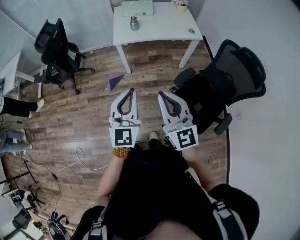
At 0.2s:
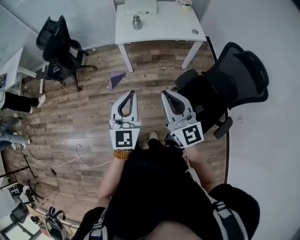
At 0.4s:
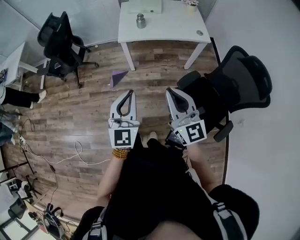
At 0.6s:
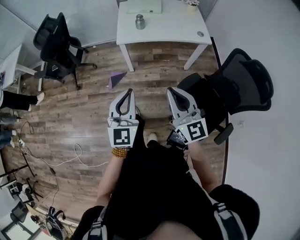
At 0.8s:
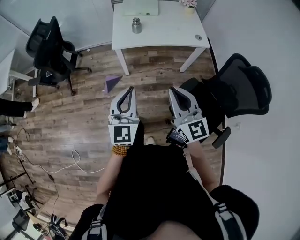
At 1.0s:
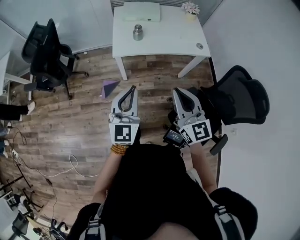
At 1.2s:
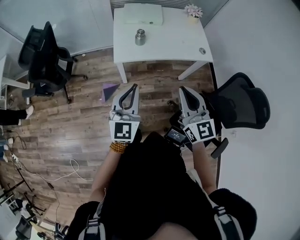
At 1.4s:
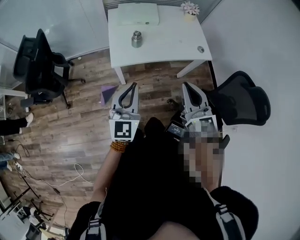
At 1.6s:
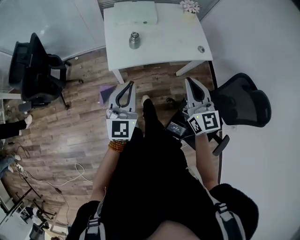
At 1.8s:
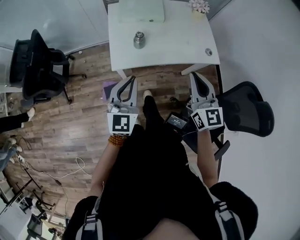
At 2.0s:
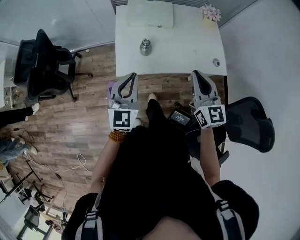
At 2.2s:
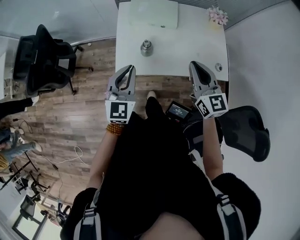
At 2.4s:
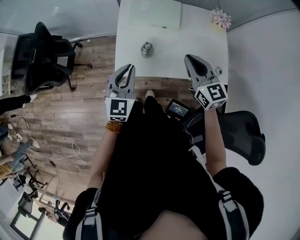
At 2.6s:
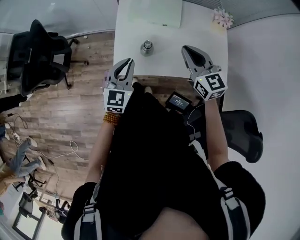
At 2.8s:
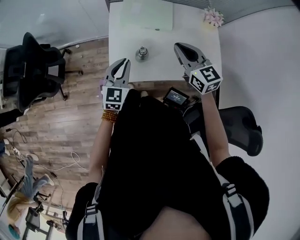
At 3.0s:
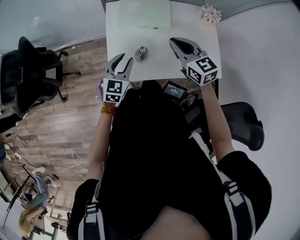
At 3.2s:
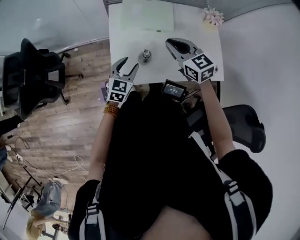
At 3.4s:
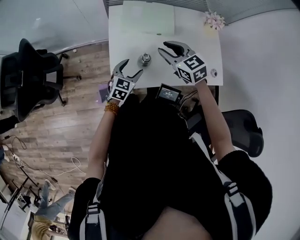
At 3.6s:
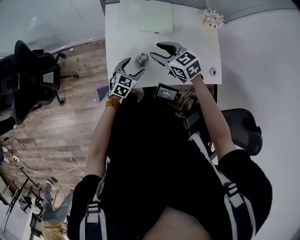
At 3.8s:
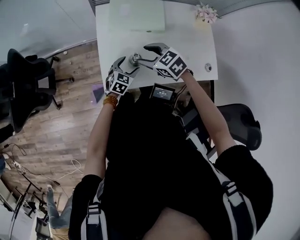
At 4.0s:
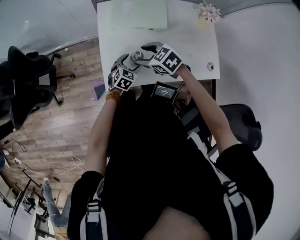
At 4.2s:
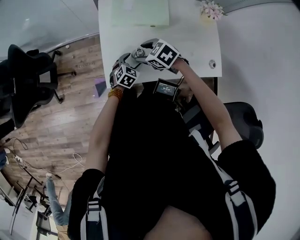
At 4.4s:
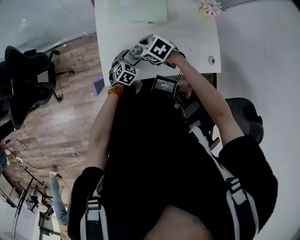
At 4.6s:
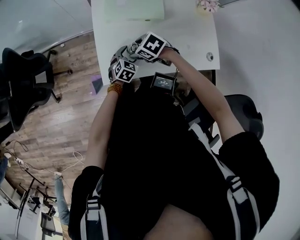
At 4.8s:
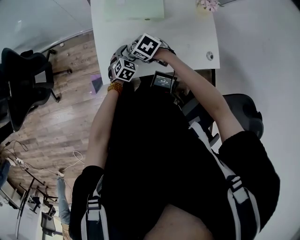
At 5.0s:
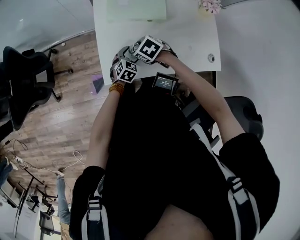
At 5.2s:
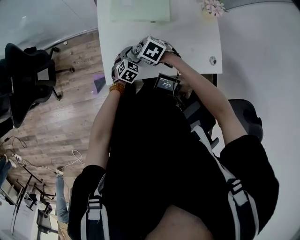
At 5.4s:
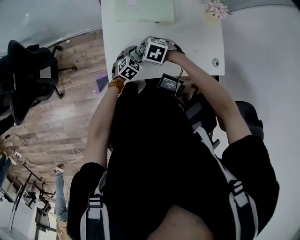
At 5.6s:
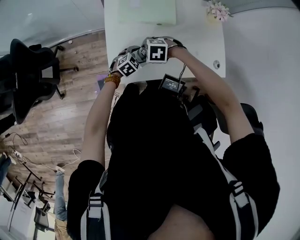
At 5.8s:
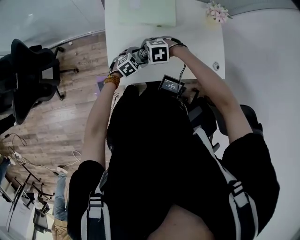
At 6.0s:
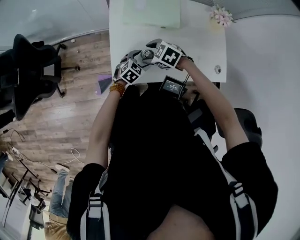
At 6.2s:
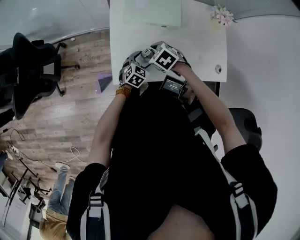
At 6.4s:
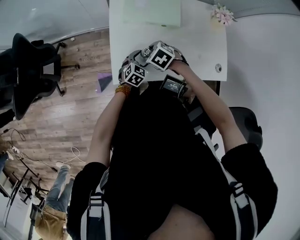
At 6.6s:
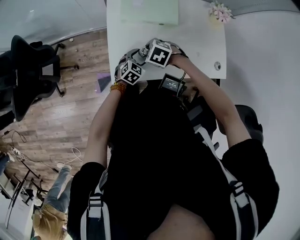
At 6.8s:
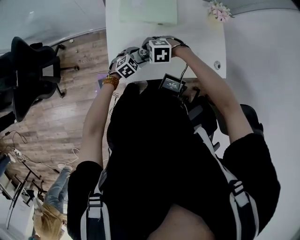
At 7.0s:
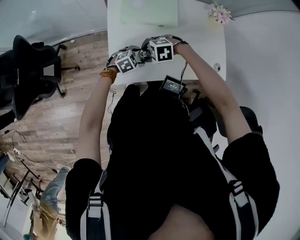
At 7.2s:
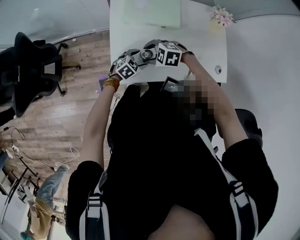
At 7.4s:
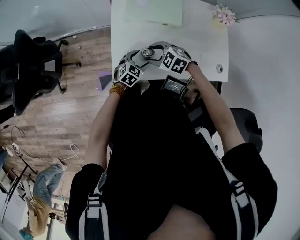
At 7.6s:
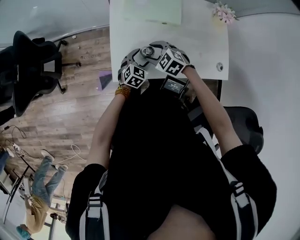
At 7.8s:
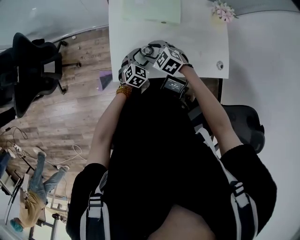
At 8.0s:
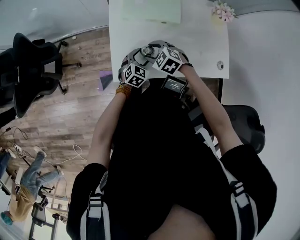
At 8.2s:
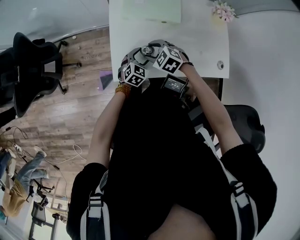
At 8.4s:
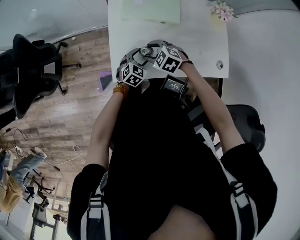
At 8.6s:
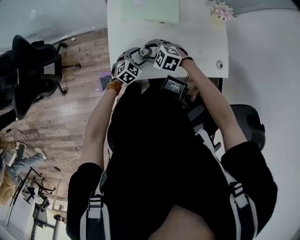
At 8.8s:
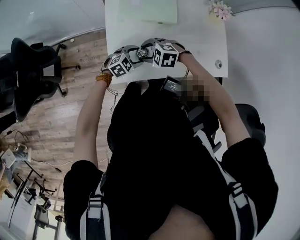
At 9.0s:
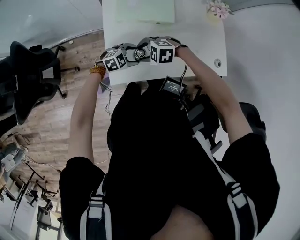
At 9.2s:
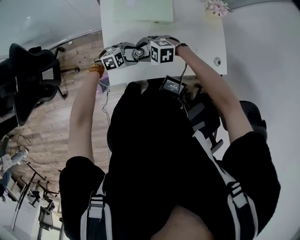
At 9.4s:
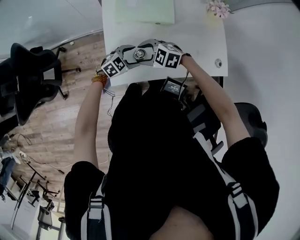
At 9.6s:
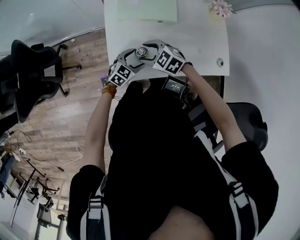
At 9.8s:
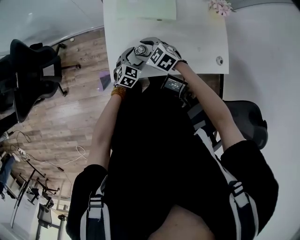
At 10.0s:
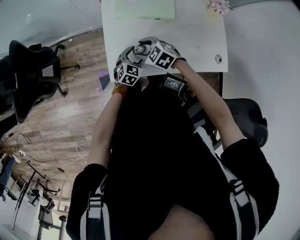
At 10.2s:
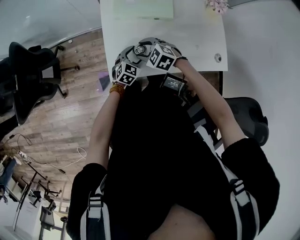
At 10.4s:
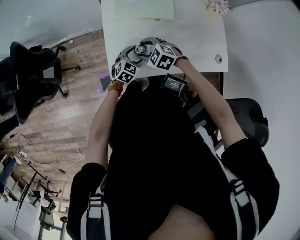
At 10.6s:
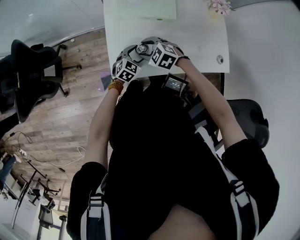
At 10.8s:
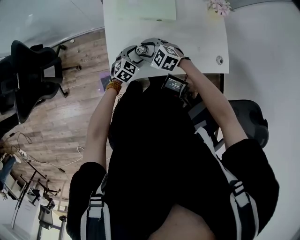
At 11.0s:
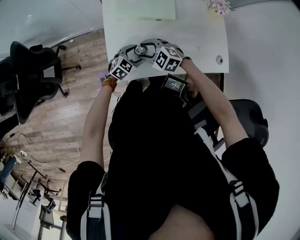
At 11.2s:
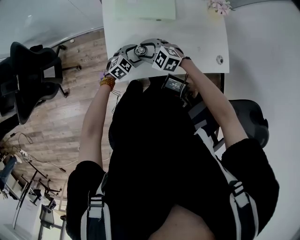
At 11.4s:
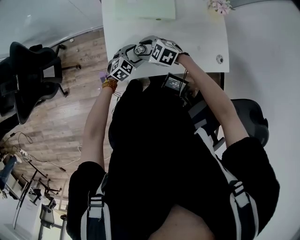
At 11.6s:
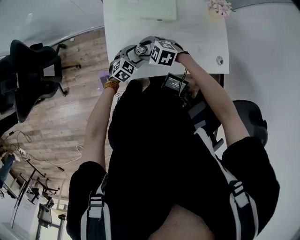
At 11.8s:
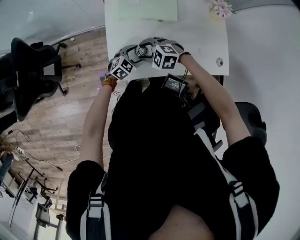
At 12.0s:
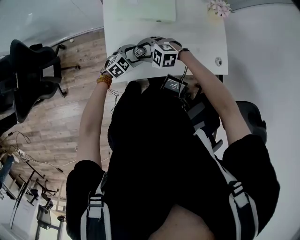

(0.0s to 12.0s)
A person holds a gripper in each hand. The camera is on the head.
0.0s - 1.6s: Both grippers move forward, roughly 40 cm.
1.6s - 3.0s: The right gripper travels forward by some 35 cm, and changes its angle by approximately 30 degrees. Meanwhile the left gripper heads forward and downward, covering roughly 35 cm.
3.0s - 4.4s: The left gripper heads downward, covering roughly 20 cm, changes its angle by about 30 degrees, and opens up, while the right gripper goes approximately 20 cm downward and to the left, tips its fingers downward by about 40 degrees, and opens up.
7.6s - 9.0s: The left gripper turns by roughly 50 degrees; the right gripper turns by about 30 degrees.
9.0s - 10.4s: The left gripper turns by roughly 40 degrees. Meanwhile the right gripper turns by about 20 degrees.
10.4s - 12.0s: The right gripper turns by some 20 degrees.

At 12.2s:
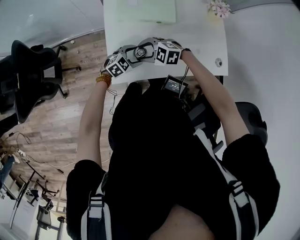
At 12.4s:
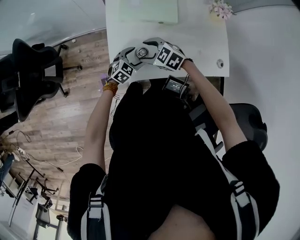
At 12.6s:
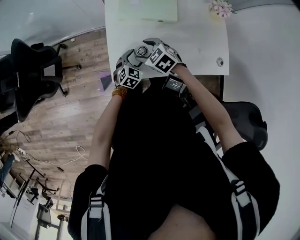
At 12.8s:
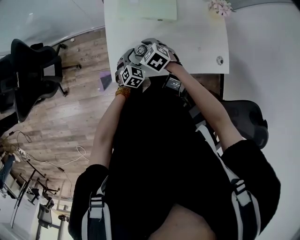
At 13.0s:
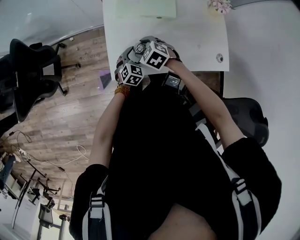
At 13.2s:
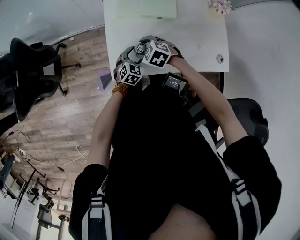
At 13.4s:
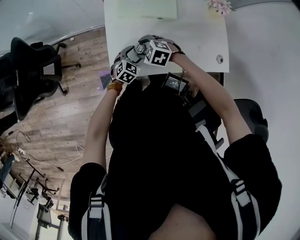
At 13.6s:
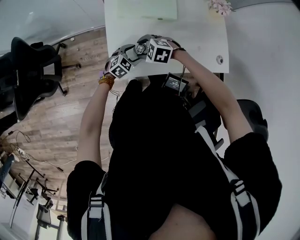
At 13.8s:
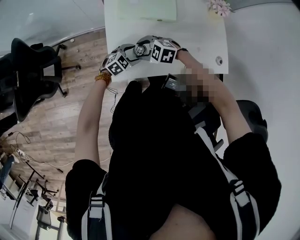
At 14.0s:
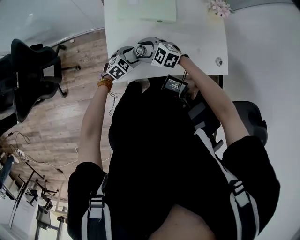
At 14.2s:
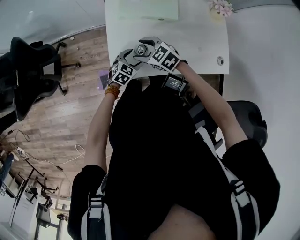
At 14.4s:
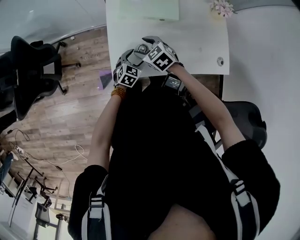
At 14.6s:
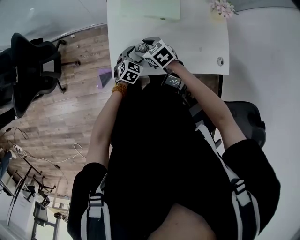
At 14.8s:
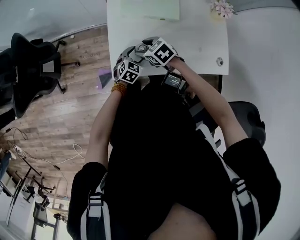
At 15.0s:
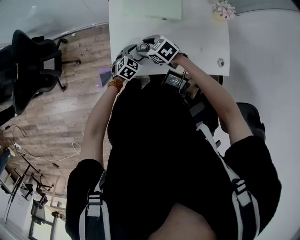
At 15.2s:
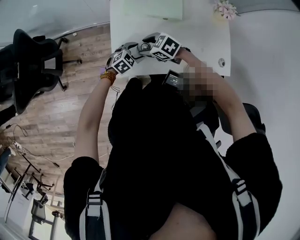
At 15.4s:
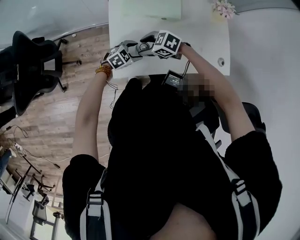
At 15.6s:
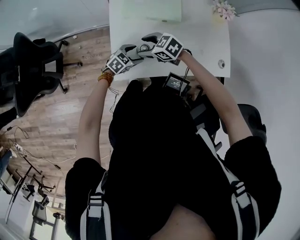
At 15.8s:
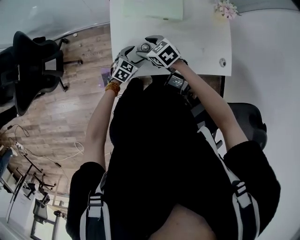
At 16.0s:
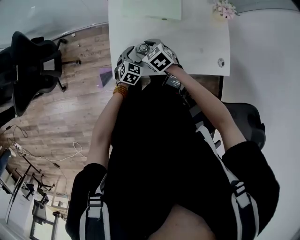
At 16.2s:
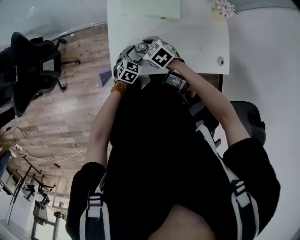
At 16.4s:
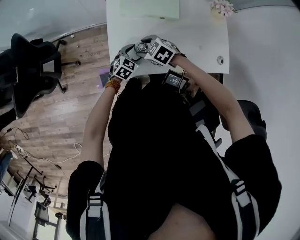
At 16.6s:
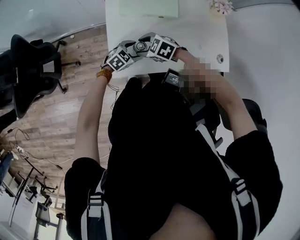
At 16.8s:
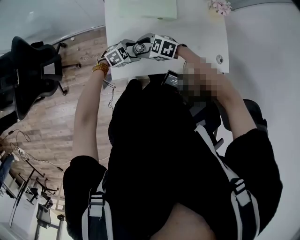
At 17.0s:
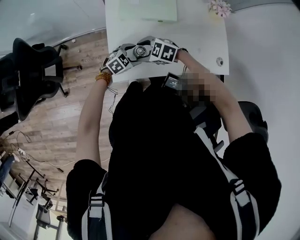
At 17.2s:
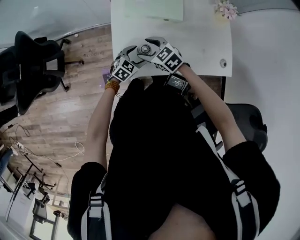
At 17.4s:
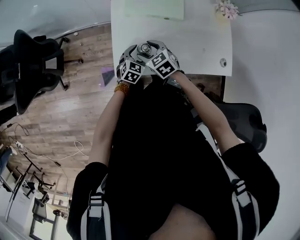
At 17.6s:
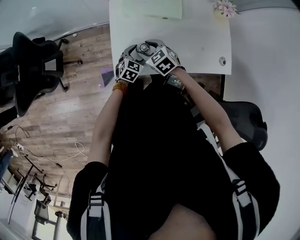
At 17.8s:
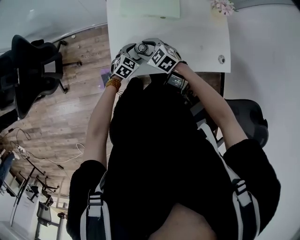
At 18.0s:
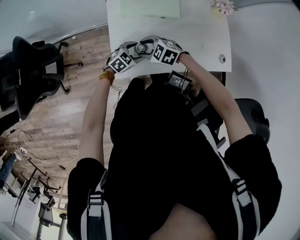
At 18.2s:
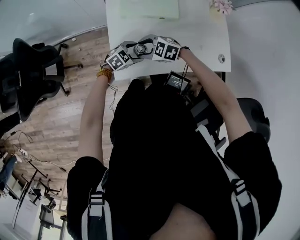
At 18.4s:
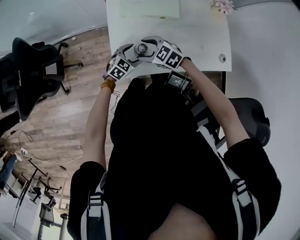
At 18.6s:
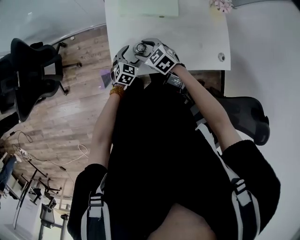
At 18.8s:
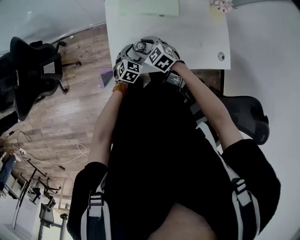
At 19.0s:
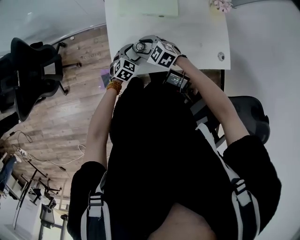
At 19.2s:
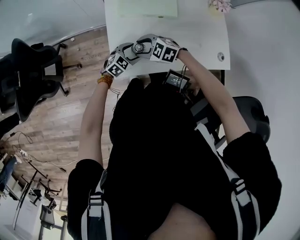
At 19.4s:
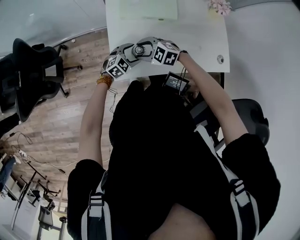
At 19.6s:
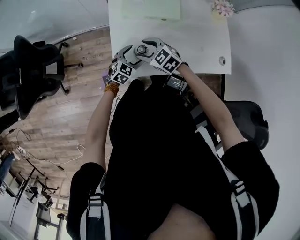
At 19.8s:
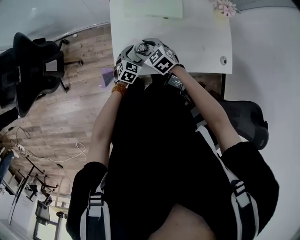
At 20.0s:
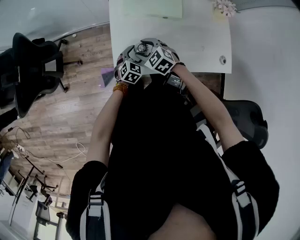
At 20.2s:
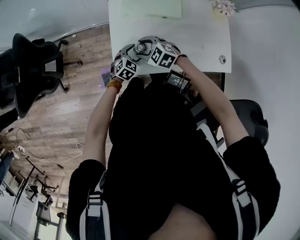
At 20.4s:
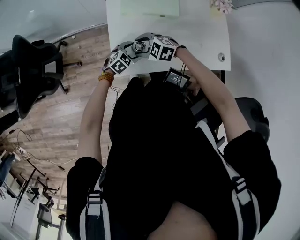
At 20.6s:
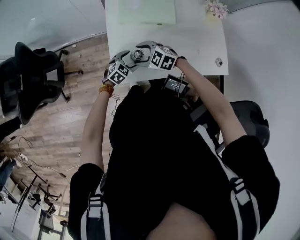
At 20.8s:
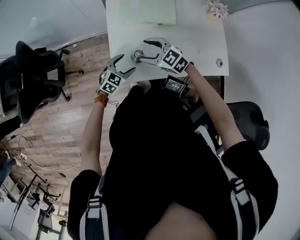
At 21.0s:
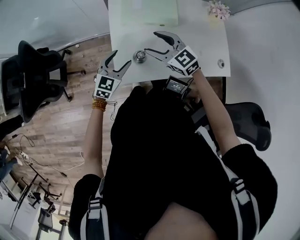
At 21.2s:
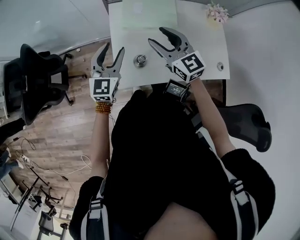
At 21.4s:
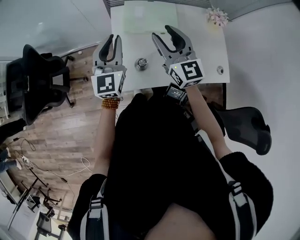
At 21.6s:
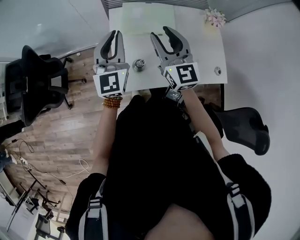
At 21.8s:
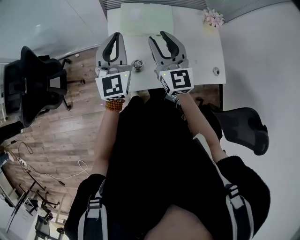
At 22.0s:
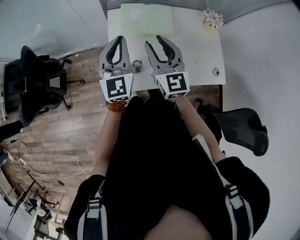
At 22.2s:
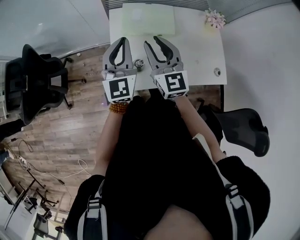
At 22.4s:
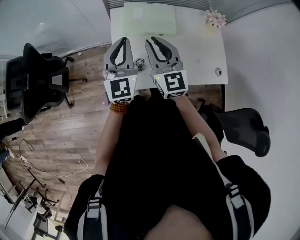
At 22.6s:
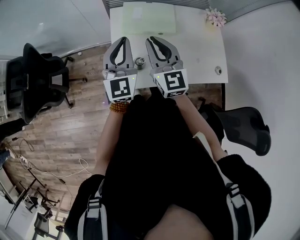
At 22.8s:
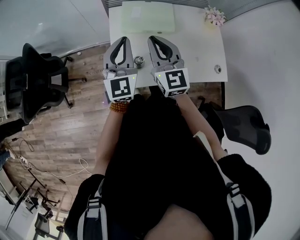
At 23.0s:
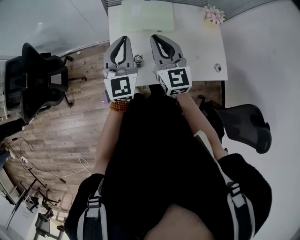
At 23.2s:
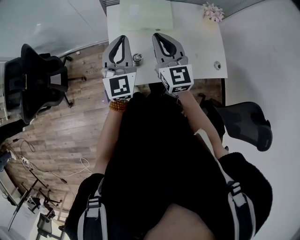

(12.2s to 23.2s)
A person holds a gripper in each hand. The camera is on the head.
13.8s - 15.4s: The right gripper changes its angle by some 20 degrees.
20.0s - 21.6s: The grippers both shift upward by roughly 30 cm. The left gripper tilts its fingers roughly 50 degrees upward, and closes. Meanwhile the right gripper points its fingers some 50 degrees further upward.
21.6s - 23.2s: The right gripper closes up. Meanwhile the left gripper shifts by some 5 cm.

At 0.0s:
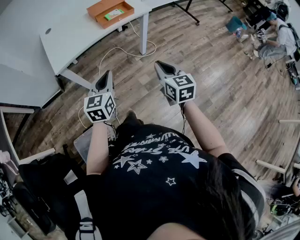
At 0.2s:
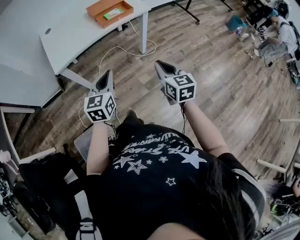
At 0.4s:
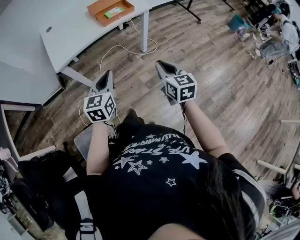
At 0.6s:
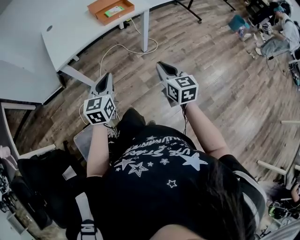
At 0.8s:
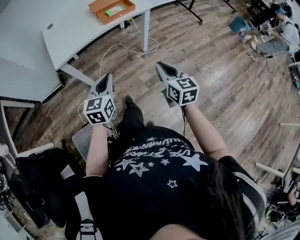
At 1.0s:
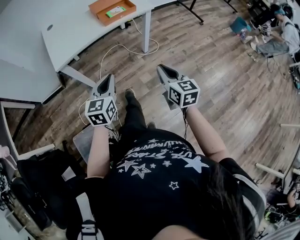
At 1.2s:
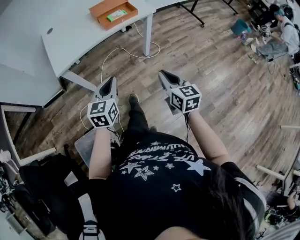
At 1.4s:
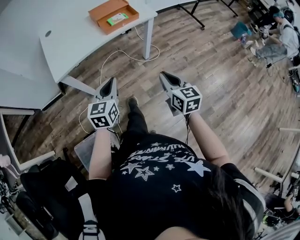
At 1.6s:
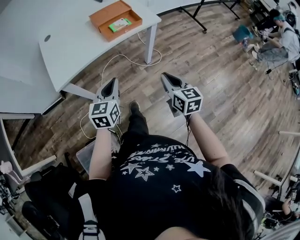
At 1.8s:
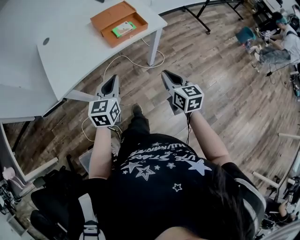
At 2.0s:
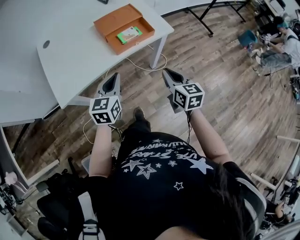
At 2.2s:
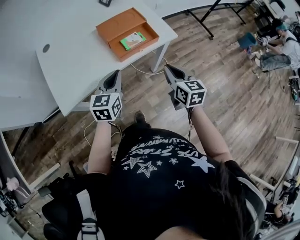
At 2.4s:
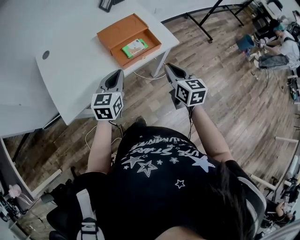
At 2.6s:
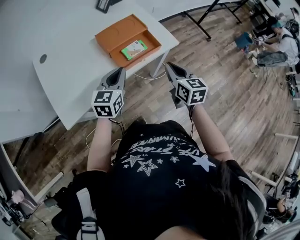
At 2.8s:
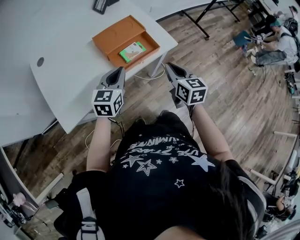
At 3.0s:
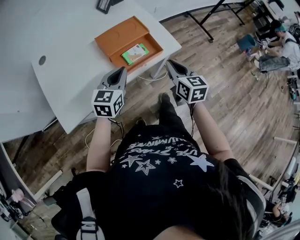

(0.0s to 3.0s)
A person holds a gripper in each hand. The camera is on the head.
0.0s - 1.6s: The two grippers go roughly 15 cm forward.
1.6s - 3.0s: The grippers both shift forward by approximately 35 cm.
